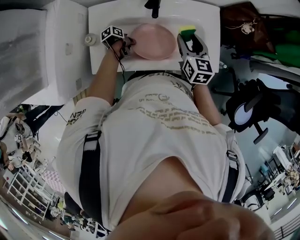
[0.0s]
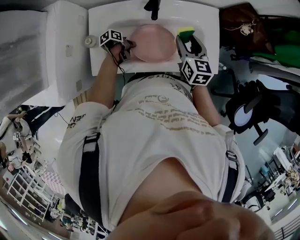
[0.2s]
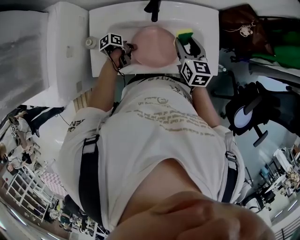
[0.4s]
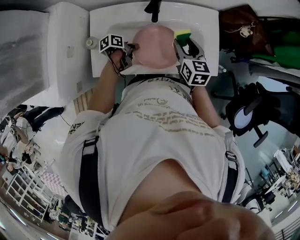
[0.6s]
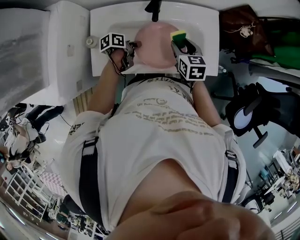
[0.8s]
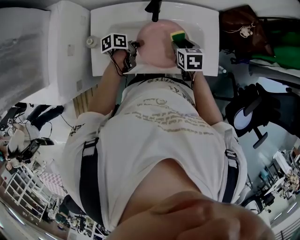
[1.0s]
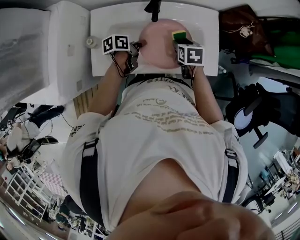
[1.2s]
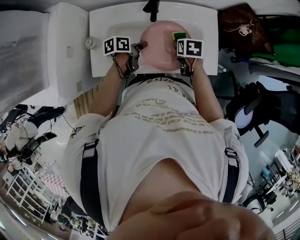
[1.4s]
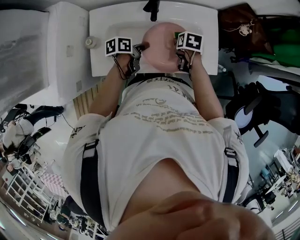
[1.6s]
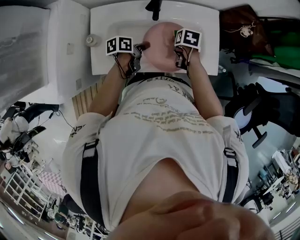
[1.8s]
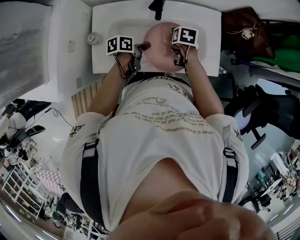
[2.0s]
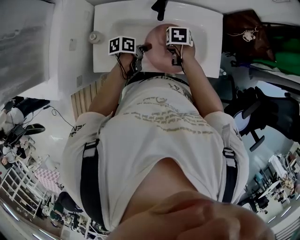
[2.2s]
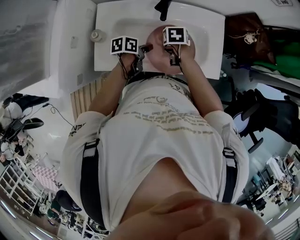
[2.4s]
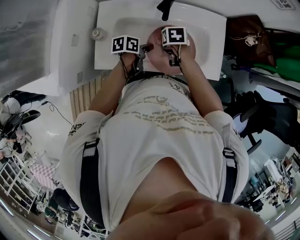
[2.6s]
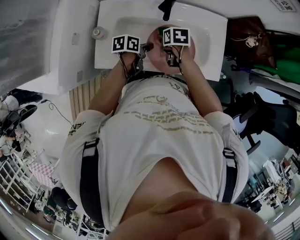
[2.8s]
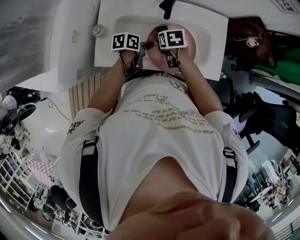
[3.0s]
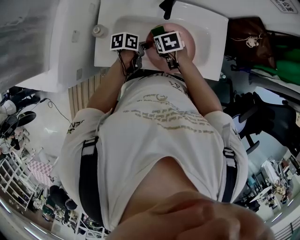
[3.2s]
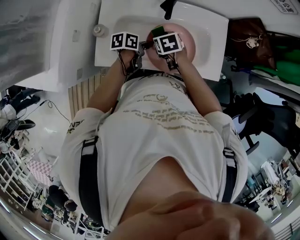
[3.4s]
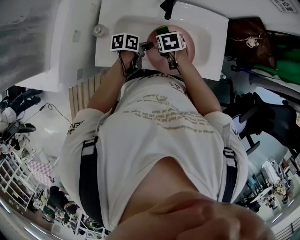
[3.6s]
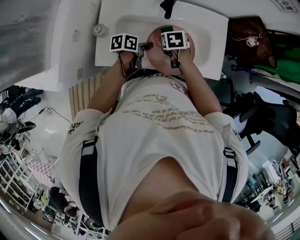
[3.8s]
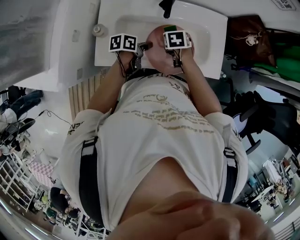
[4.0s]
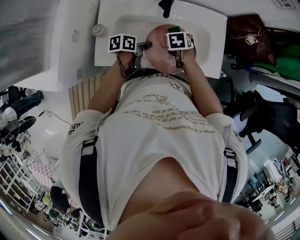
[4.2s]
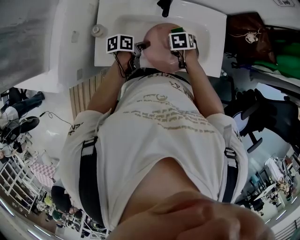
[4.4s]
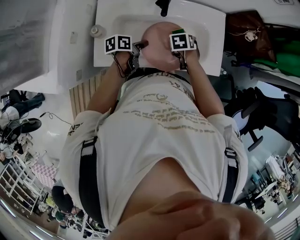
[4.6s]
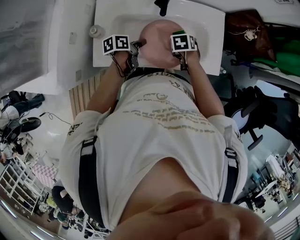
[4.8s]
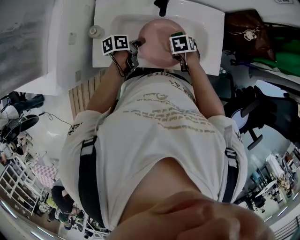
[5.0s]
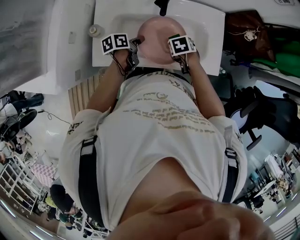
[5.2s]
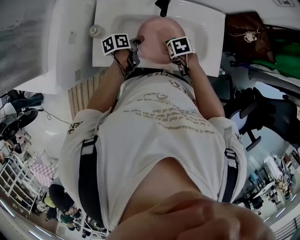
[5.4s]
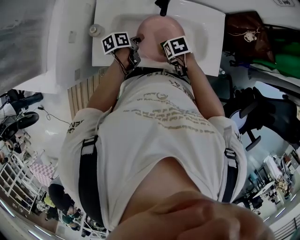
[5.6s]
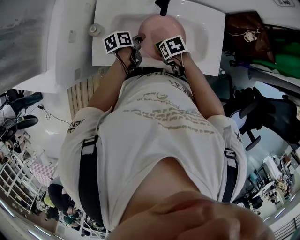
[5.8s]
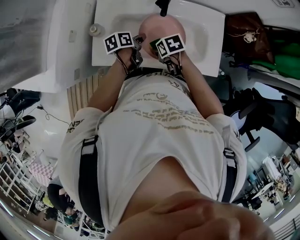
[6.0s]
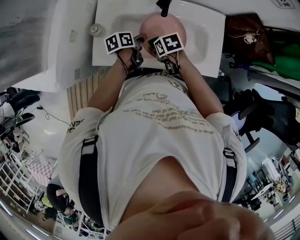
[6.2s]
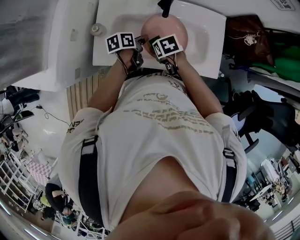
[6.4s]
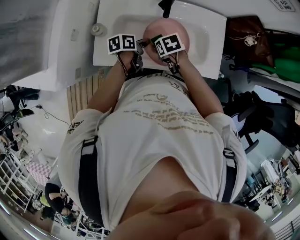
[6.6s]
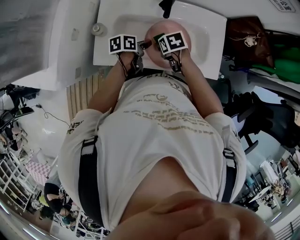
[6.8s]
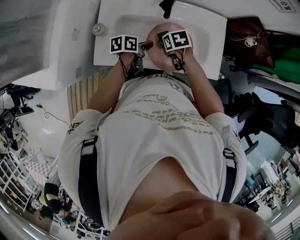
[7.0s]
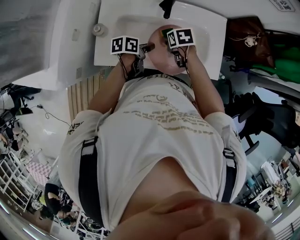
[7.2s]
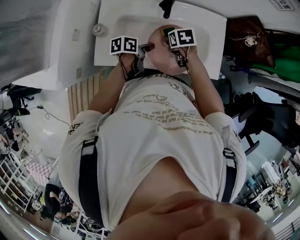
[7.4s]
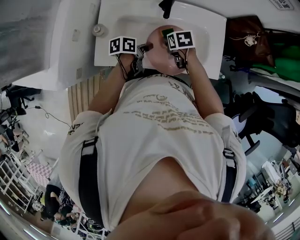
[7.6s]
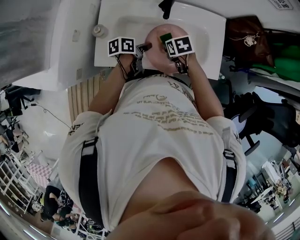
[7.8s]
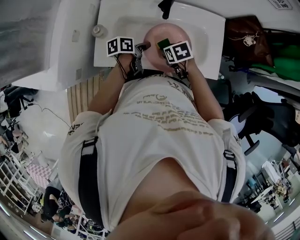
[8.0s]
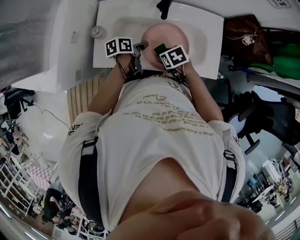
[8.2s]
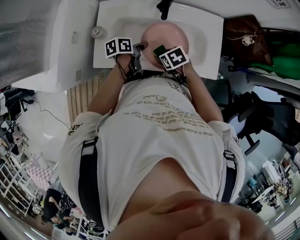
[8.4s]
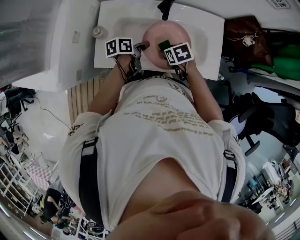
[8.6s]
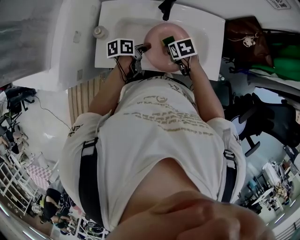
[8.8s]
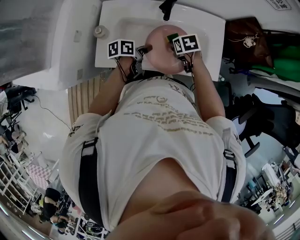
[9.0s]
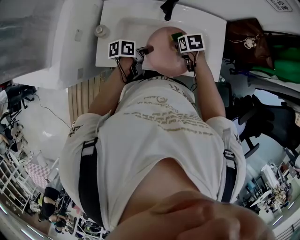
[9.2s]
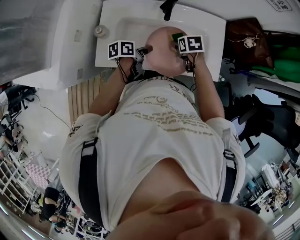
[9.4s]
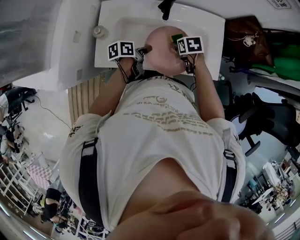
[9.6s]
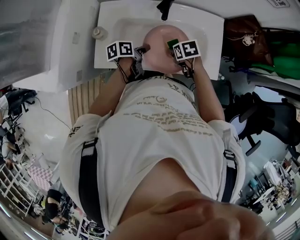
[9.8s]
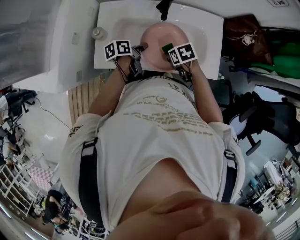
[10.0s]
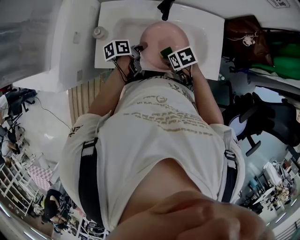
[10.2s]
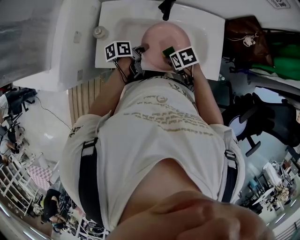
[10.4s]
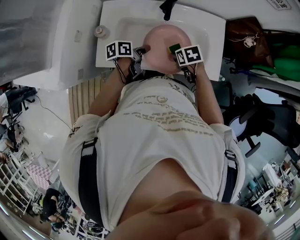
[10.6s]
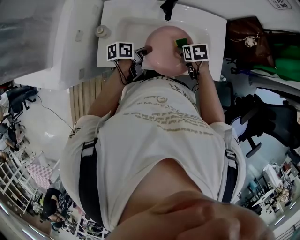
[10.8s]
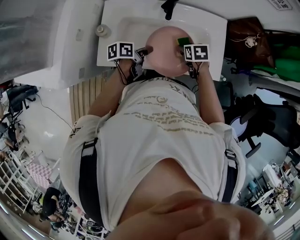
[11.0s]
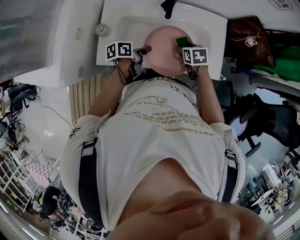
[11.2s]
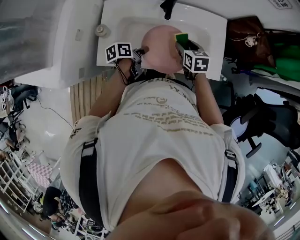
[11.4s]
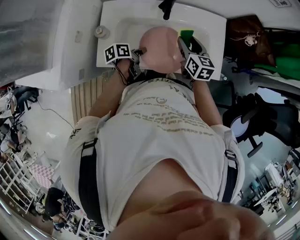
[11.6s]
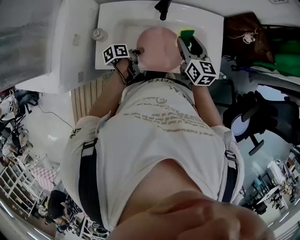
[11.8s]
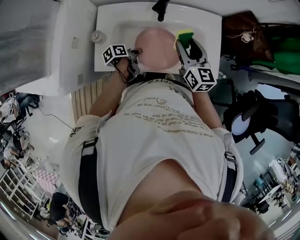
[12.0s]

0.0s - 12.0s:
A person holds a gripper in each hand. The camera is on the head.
0.0s - 1.6s: The right gripper moves downward, roughly 10 cm, and tilts its fingers about 40 degrees downward. The left gripper moves upward and to the right, about 15 cm, and changes its angle by approximately 30 degrees.
1.6s - 3.0s: The right gripper is displaced to the left by approximately 15 cm, and turns by some 30 degrees.
3.0s - 4.4s: The right gripper shifts approximately 10 cm to the right.
4.4s - 6.0s: The right gripper changes place by about 10 cm, and turns by about 30 degrees.
6.0s - 7.6s: The right gripper moves forward, approximately 5 cm. Meanwhile the left gripper shifts by some 5 cm.
7.6s - 9.0s: The right gripper goes backward and returns, roughly 10 cm each way.
9.0s - 10.4s: The right gripper is displaced backward by approximately 10 cm.
10.4s - 12.0s: The left gripper moves some 5 cm. The right gripper travels upward by some 15 cm, and tilts its fingers about 50 degrees upward.

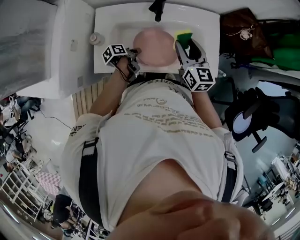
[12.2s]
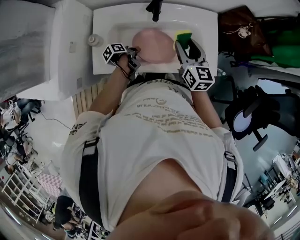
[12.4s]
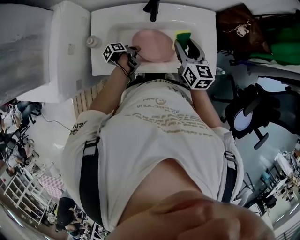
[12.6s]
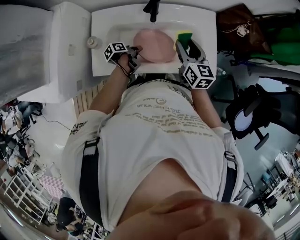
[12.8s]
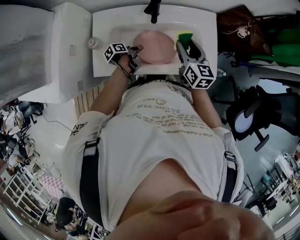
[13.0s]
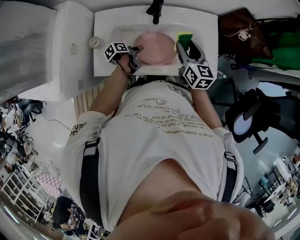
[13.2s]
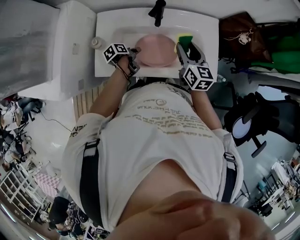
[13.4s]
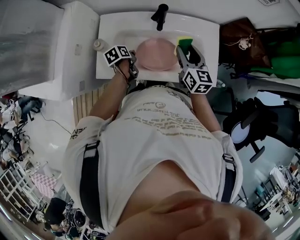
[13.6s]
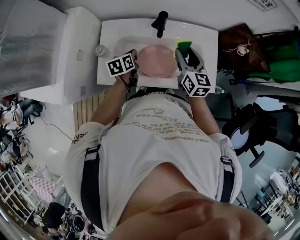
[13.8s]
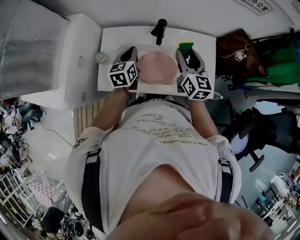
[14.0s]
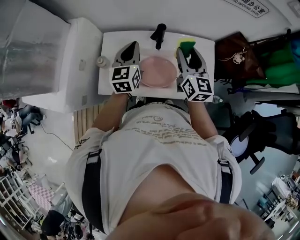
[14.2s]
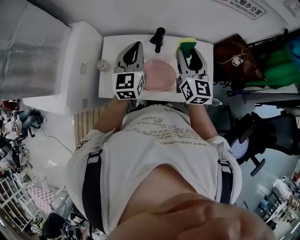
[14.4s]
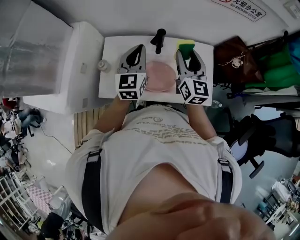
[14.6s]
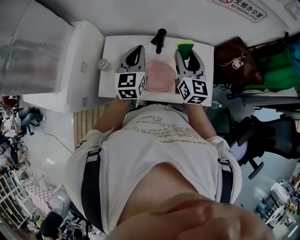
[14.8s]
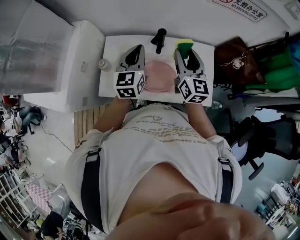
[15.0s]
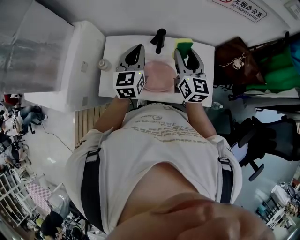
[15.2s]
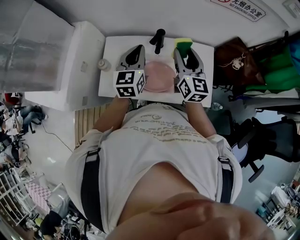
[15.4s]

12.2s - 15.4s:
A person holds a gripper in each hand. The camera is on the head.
12.2s - 13.8s: The left gripper heads upward and forward, covering approximately 10 cm, swivels about 50 degrees, and opens, then closes once more.
13.8s - 15.4s: The right gripper shifts some 10 cm upward, while the left gripper is displaced upward by about 20 cm, and rotates roughly 40 degrees.

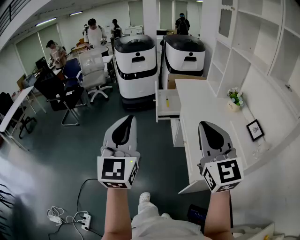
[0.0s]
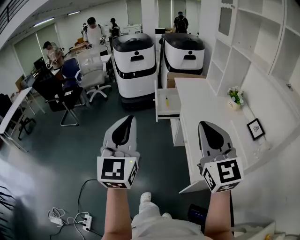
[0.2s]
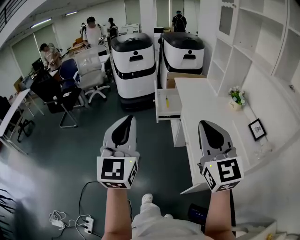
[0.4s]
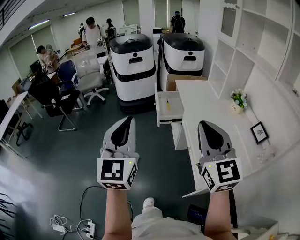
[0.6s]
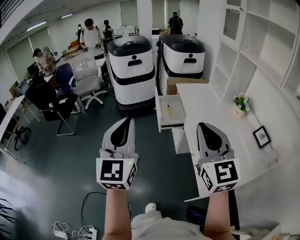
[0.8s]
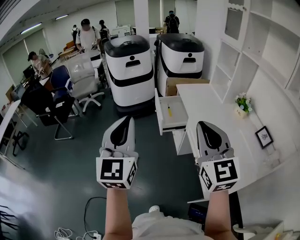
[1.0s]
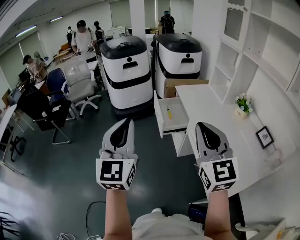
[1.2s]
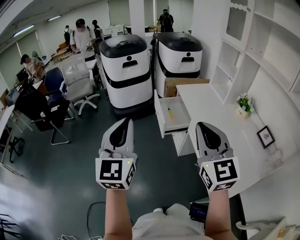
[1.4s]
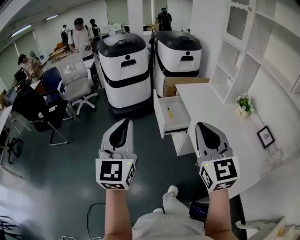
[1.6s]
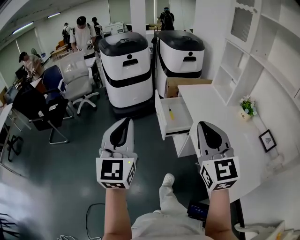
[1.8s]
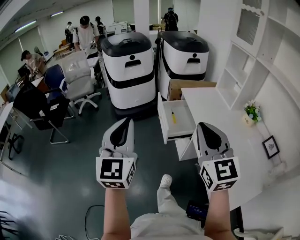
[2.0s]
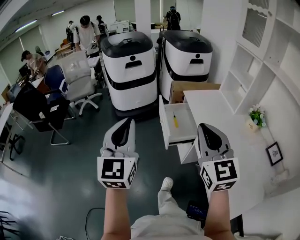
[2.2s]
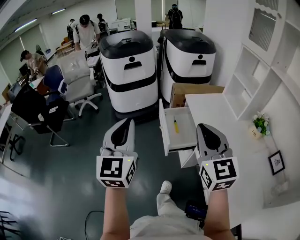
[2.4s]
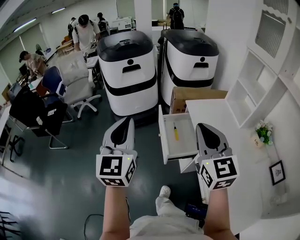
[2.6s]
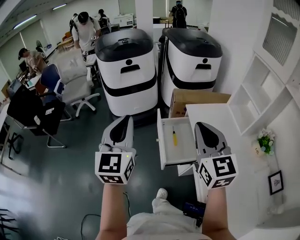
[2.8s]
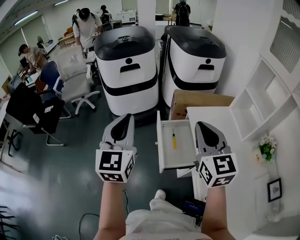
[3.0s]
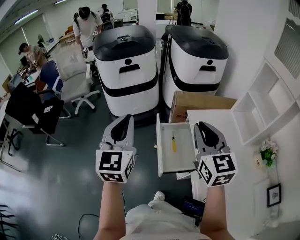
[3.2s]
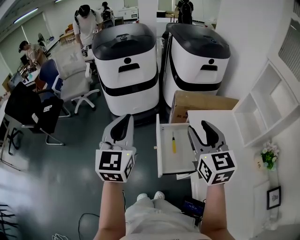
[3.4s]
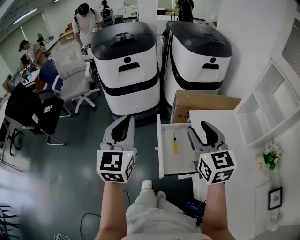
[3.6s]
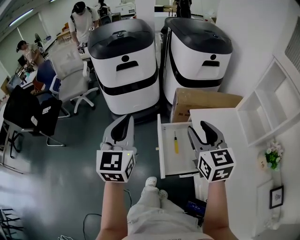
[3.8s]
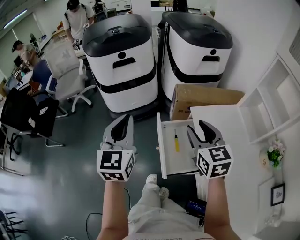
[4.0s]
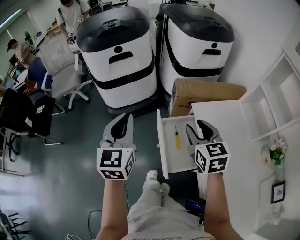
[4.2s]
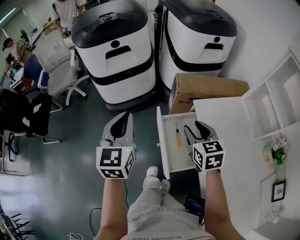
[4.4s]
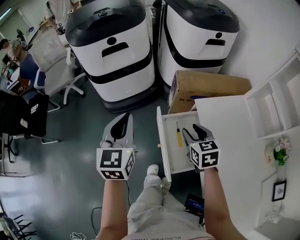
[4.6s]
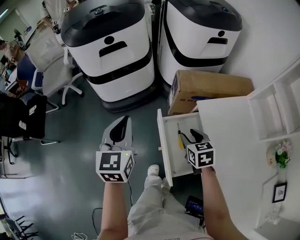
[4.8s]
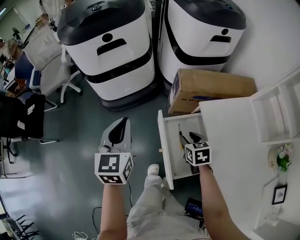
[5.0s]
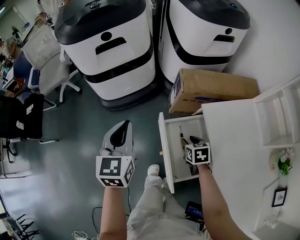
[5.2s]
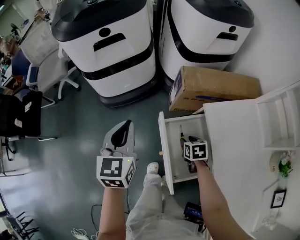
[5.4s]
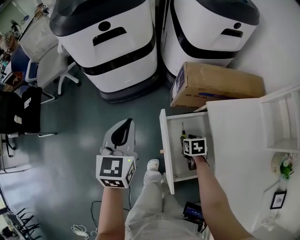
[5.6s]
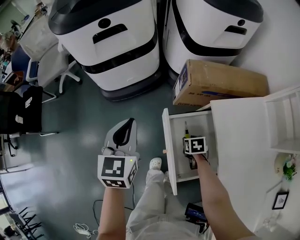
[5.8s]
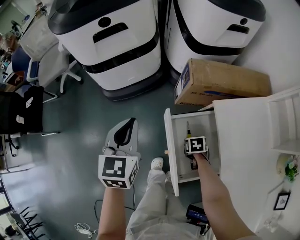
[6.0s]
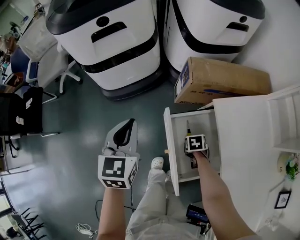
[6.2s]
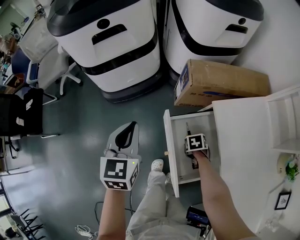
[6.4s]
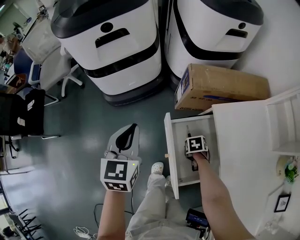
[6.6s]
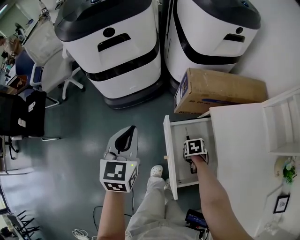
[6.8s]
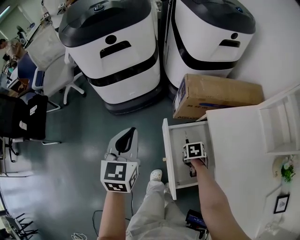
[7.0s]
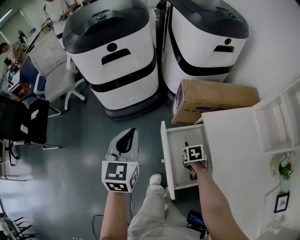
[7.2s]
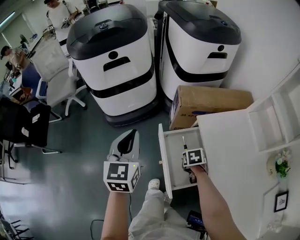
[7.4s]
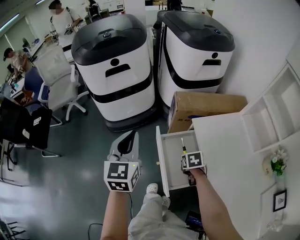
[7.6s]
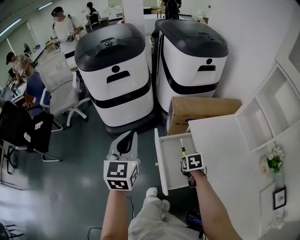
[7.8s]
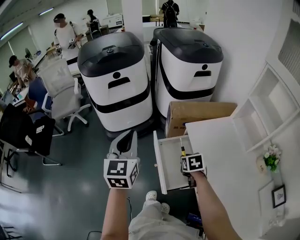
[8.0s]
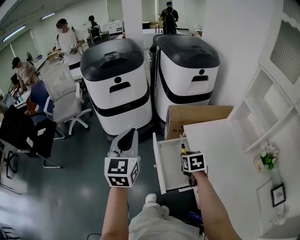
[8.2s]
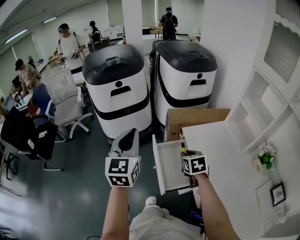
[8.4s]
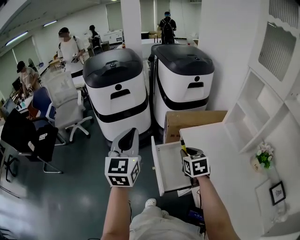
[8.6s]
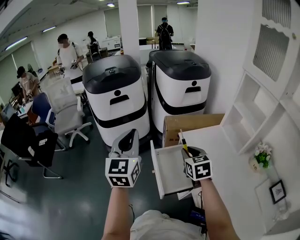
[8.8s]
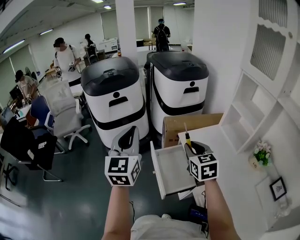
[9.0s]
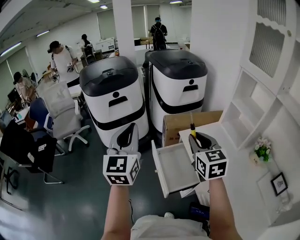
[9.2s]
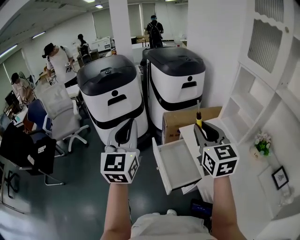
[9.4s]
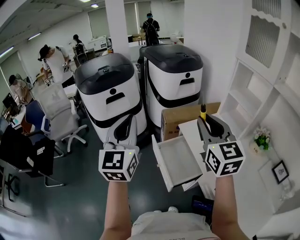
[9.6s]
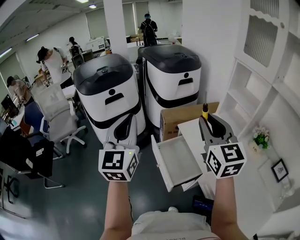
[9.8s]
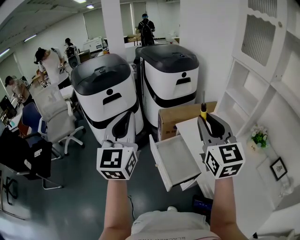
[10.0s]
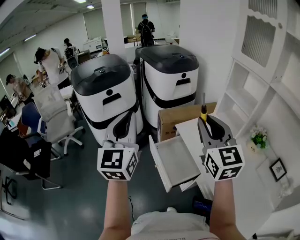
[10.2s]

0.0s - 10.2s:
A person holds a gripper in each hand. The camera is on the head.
0.0s - 1.4s: The two grippers go some 25 cm forward and to the left.
1.4s - 3.0s: The grippers both shift forward by roughly 40 cm.
3.0s - 4.4s: The right gripper travels downward and forward by about 25 cm, changes its angle by approximately 30 degrees, and opens up. Meanwhile the left gripper shifts roughly 20 cm forward and downward.
4.4s - 5.8s: The right gripper travels downward by some 35 cm, and tilts its fingers about 40 degrees downward. The left gripper moves downward and forward, about 15 cm.
5.8s - 7.2s: The right gripper changes place by about 5 cm. Meanwhile the left gripper ends up roughly 5 cm from where it was.
7.2s - 8.8s: The right gripper moves upward, some 35 cm, and points its fingers some 40 degrees further upward; the left gripper shifts about 20 cm upward, and changes its angle by roughly 20 degrees.
8.8s - 10.2s: The right gripper shifts approximately 20 cm upward, and angles its fingers upward, by about 30 degrees. The left gripper moves upward, about 10 cm.
